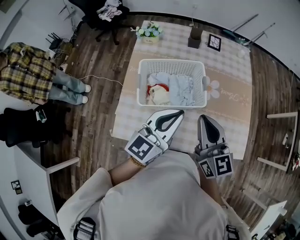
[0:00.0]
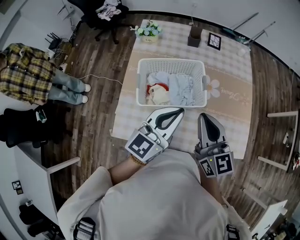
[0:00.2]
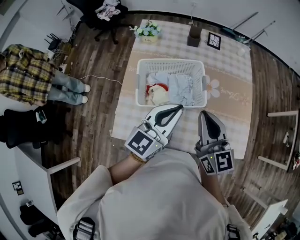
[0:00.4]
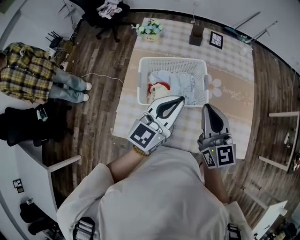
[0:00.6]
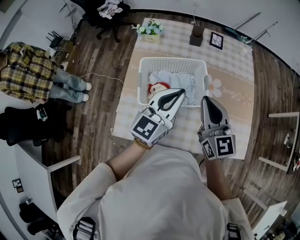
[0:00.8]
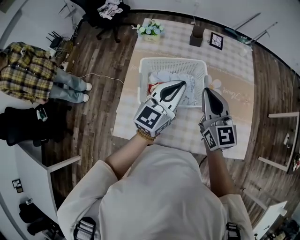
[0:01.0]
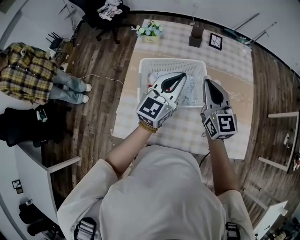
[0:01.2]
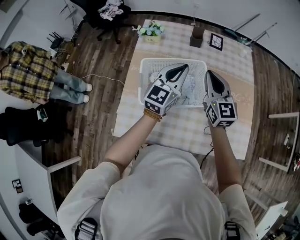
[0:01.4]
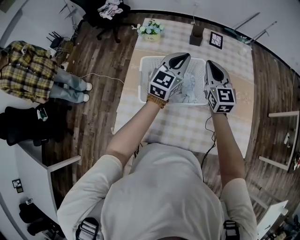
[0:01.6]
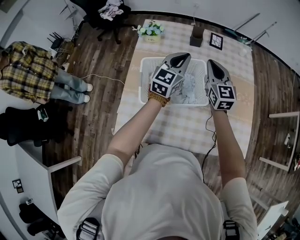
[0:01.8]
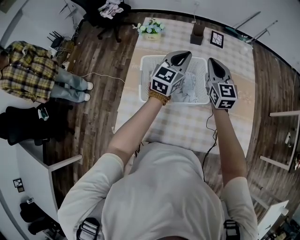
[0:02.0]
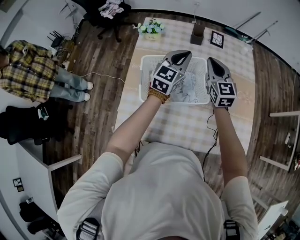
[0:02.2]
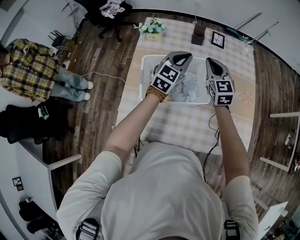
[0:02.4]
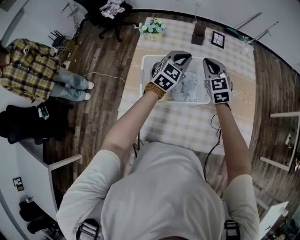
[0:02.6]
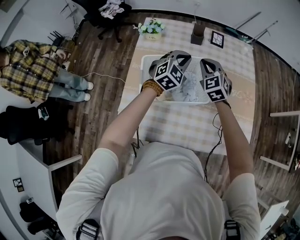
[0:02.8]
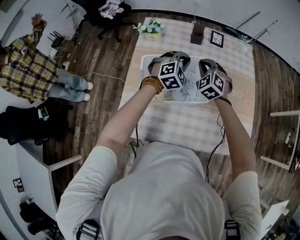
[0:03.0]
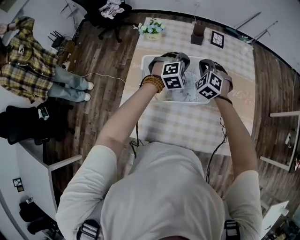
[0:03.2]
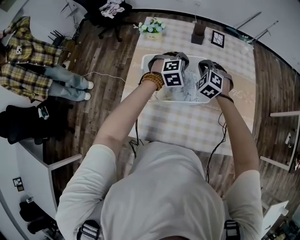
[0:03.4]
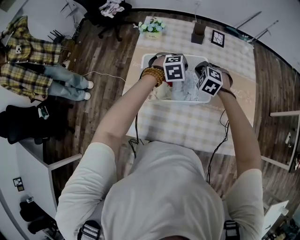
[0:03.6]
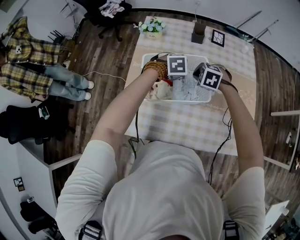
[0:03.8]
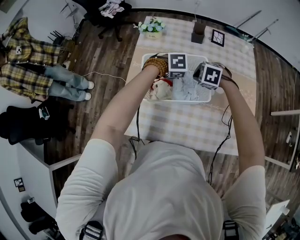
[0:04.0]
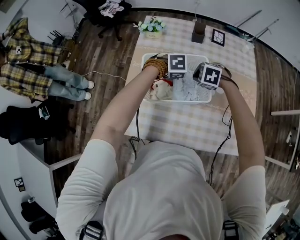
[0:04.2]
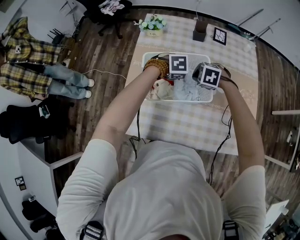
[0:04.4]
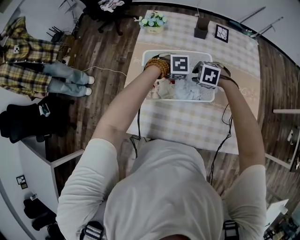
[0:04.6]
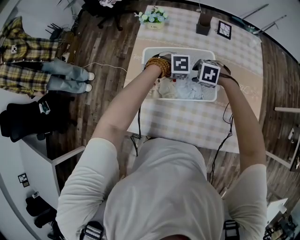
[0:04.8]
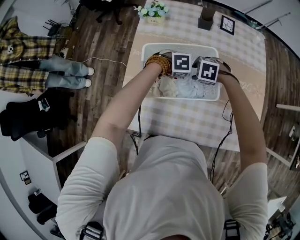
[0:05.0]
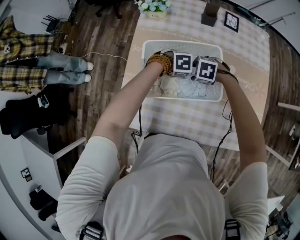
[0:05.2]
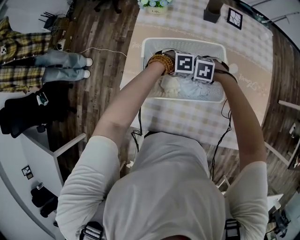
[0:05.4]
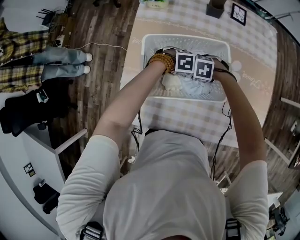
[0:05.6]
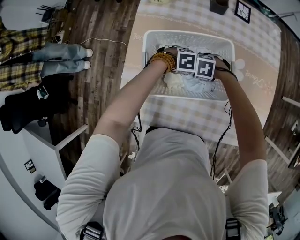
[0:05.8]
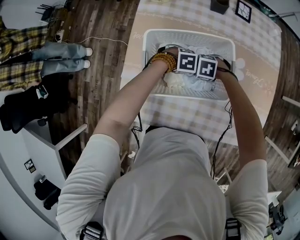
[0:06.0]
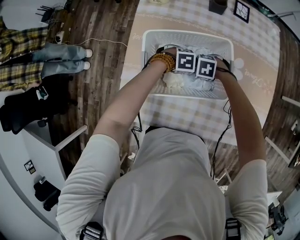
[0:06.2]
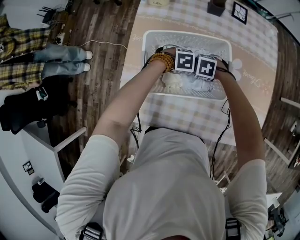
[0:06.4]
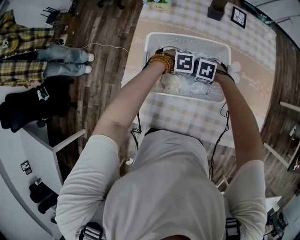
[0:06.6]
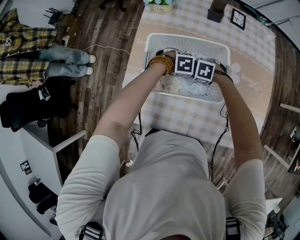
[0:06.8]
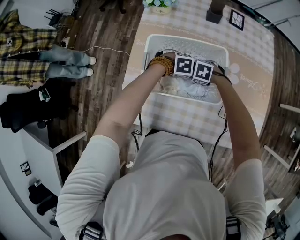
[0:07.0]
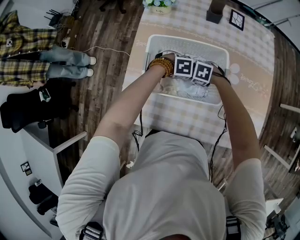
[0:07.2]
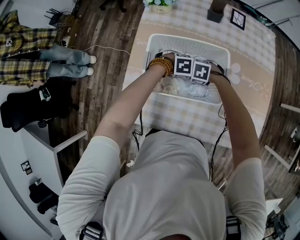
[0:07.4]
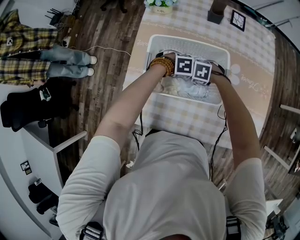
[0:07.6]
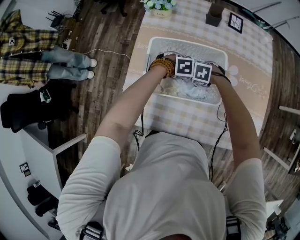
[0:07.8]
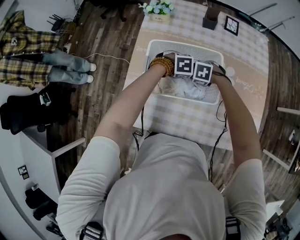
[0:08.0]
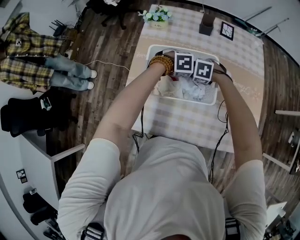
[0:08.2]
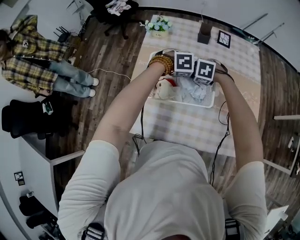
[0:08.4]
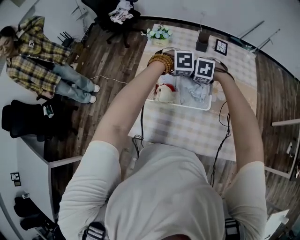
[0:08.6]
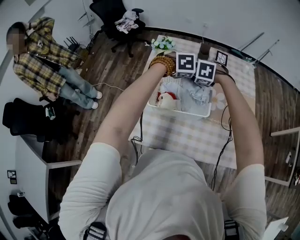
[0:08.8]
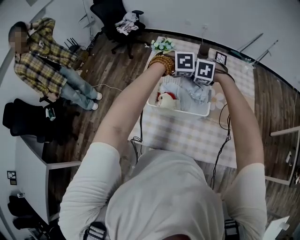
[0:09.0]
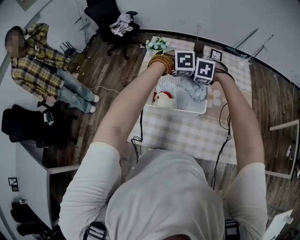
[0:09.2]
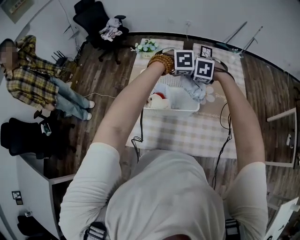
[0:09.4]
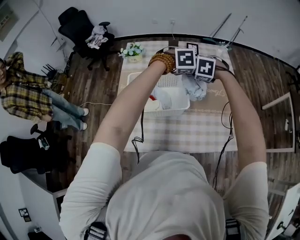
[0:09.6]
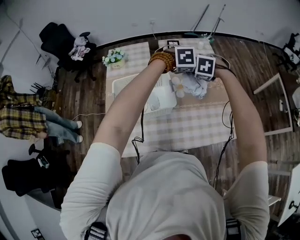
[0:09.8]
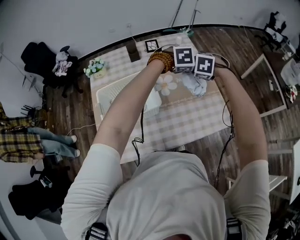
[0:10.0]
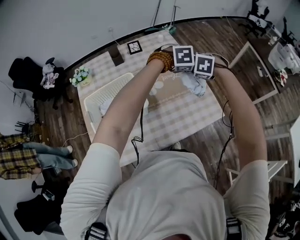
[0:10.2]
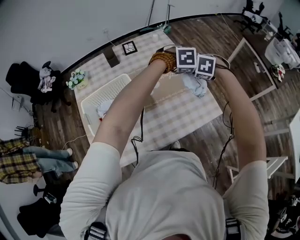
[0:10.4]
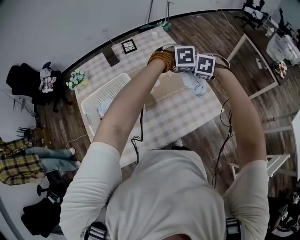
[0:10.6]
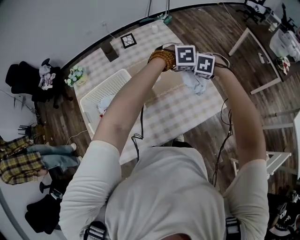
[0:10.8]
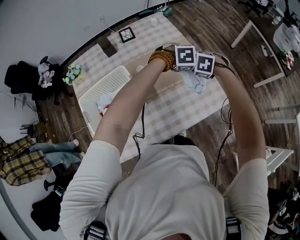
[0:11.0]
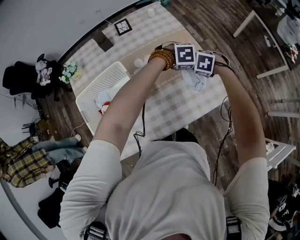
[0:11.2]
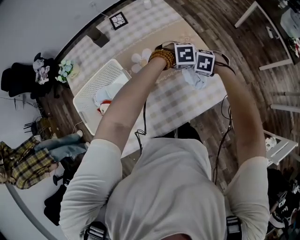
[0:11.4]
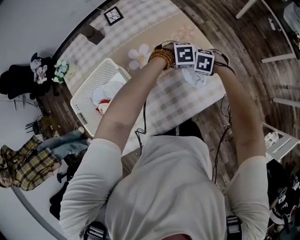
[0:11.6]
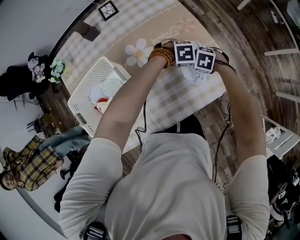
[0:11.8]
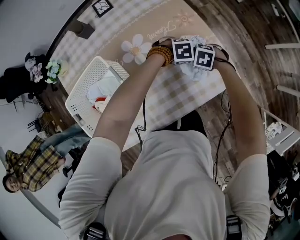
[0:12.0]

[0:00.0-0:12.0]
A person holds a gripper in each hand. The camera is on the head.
0:00.0 to 0:01.6: The two grippers go some 20 cm forward.
0:01.6 to 0:03.0: The grippers both shift downward by roughly 10 cm. The left gripper angles its fingers downward, by about 30 degrees. Meanwhile the right gripper twists approximately 40 degrees counterclockwise, seen from behind.
0:03.0 to 0:04.4: The grippers both shift downward by about 10 cm. The left gripper tilts its fingers some 40 degrees downward. Meanwhile the right gripper points its fingers roughly 40 degrees further downward.
0:04.4 to 0:06.0: Both grippers move downward, some 15 cm. The left gripper opens its fingers. The right gripper opens up.
0:06.0 to 0:07.6: The grippers stay close to where they were, moving slightly.
0:07.6 to 0:09.0: The two grippers go some 25 cm upward. The right gripper swivels some 20 degrees; the left gripper swivels roughly 20 degrees.
0:09.0 to 0:10.4: The right gripper changes place by about 35 cm, and changes its angle by some 40 degrees; the left gripper changes place by about 40 cm, and turns by some 40 degrees.
0:10.4 to 0:12.0: Both grippers move downward, approximately 30 cm. The left gripper changes its angle by about 20 degrees. The right gripper swivels about 20 degrees.

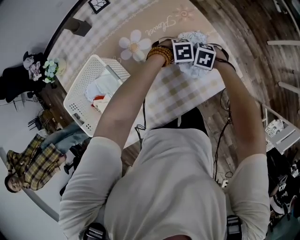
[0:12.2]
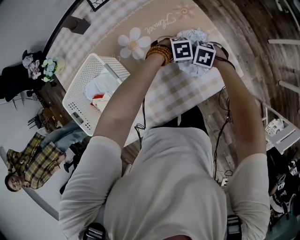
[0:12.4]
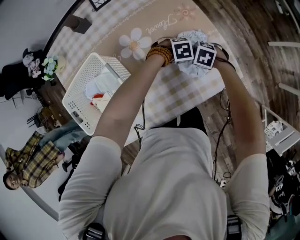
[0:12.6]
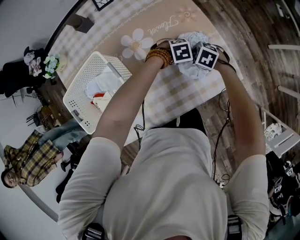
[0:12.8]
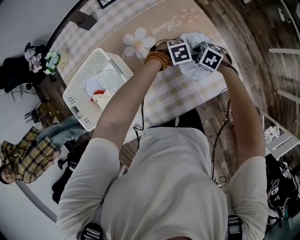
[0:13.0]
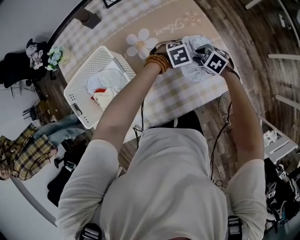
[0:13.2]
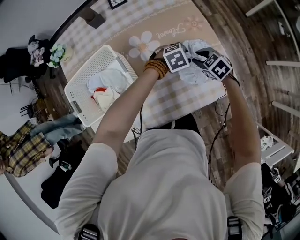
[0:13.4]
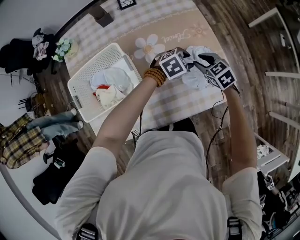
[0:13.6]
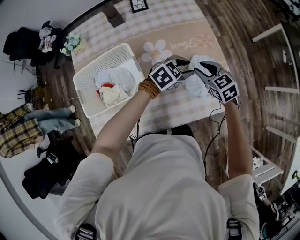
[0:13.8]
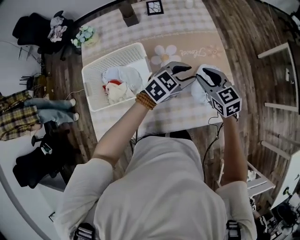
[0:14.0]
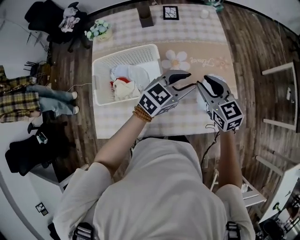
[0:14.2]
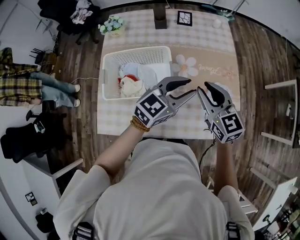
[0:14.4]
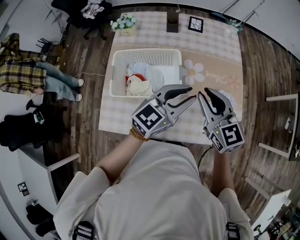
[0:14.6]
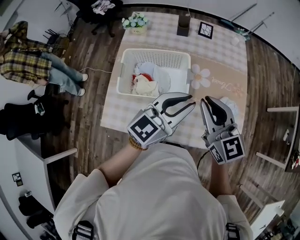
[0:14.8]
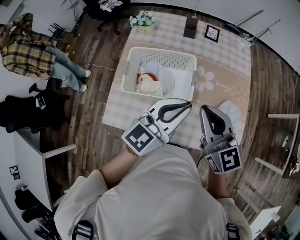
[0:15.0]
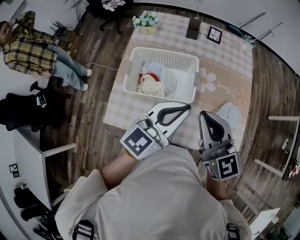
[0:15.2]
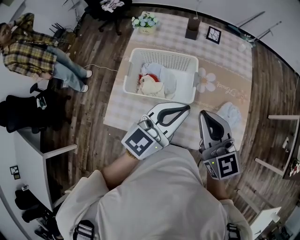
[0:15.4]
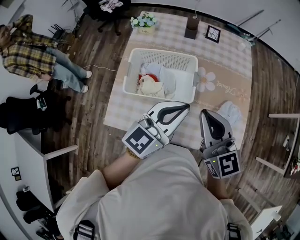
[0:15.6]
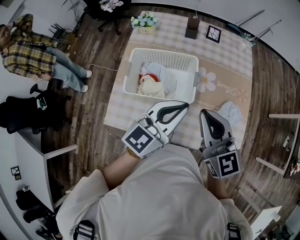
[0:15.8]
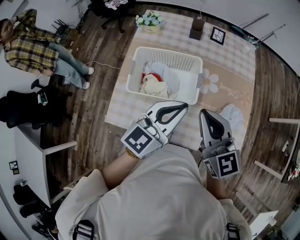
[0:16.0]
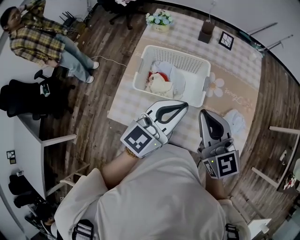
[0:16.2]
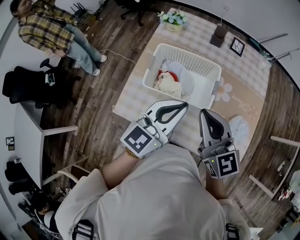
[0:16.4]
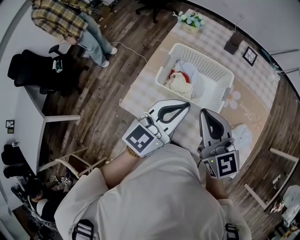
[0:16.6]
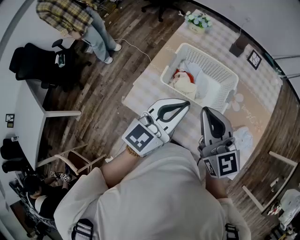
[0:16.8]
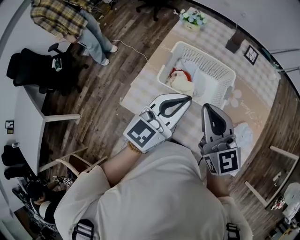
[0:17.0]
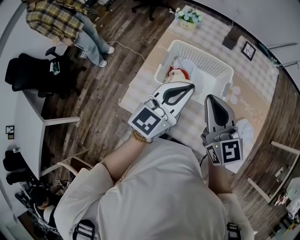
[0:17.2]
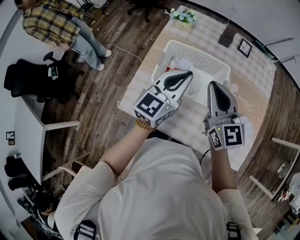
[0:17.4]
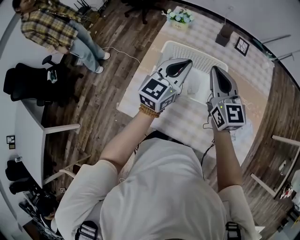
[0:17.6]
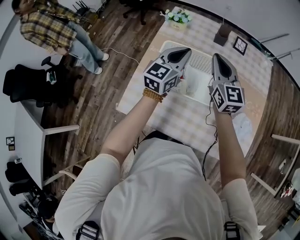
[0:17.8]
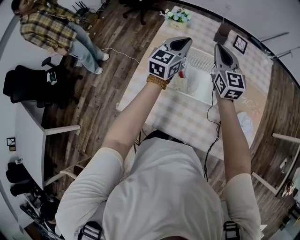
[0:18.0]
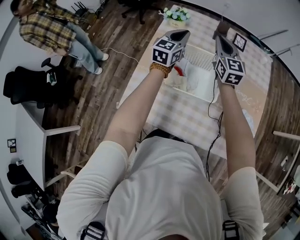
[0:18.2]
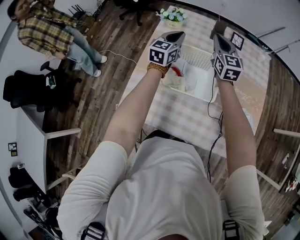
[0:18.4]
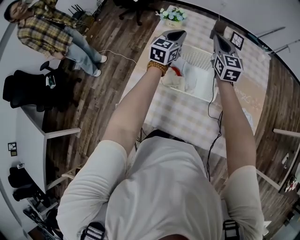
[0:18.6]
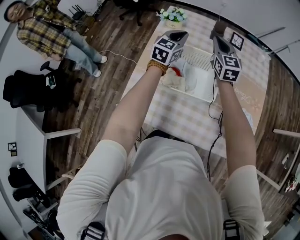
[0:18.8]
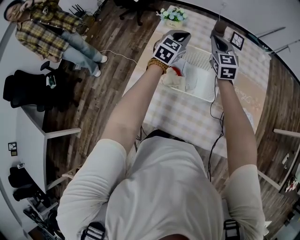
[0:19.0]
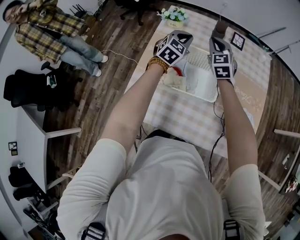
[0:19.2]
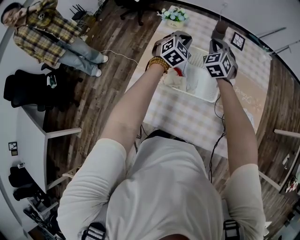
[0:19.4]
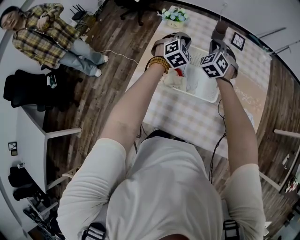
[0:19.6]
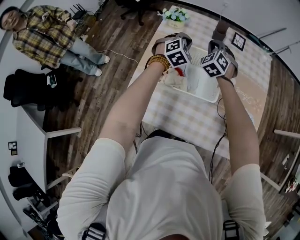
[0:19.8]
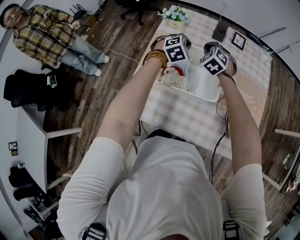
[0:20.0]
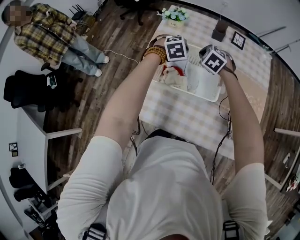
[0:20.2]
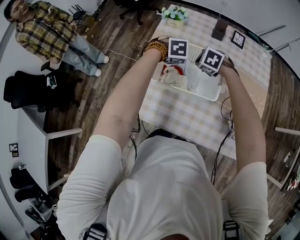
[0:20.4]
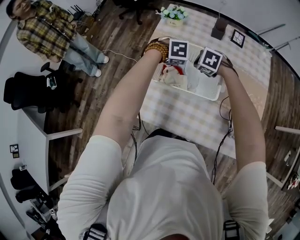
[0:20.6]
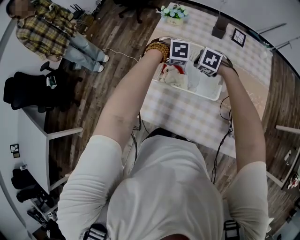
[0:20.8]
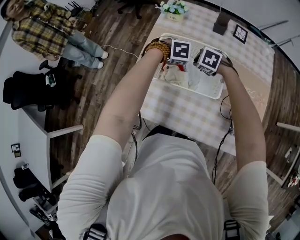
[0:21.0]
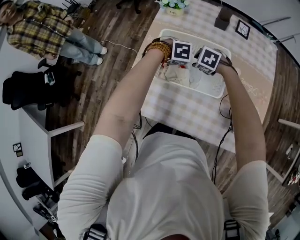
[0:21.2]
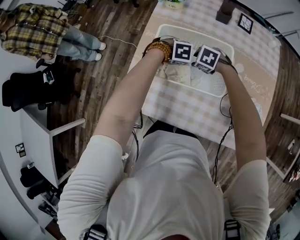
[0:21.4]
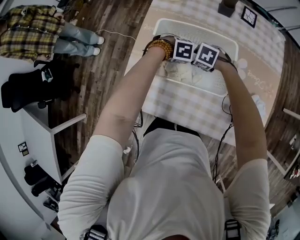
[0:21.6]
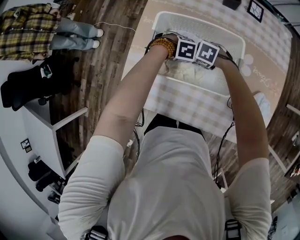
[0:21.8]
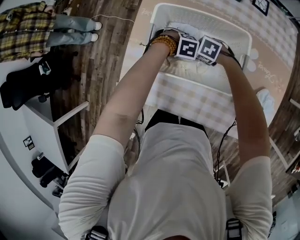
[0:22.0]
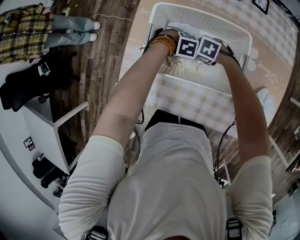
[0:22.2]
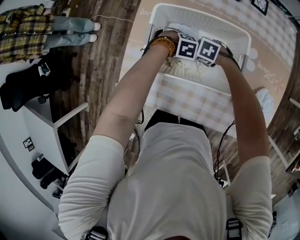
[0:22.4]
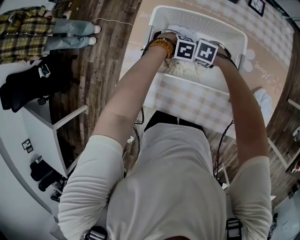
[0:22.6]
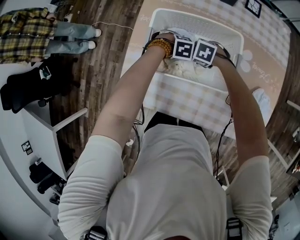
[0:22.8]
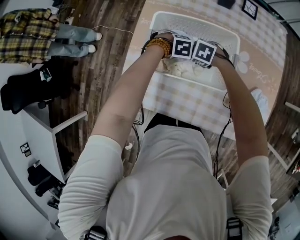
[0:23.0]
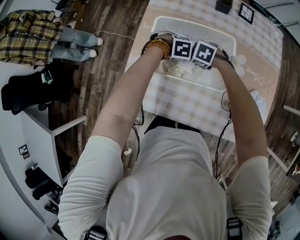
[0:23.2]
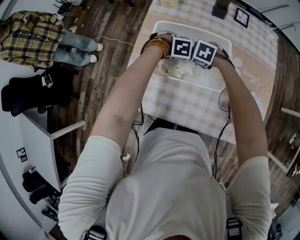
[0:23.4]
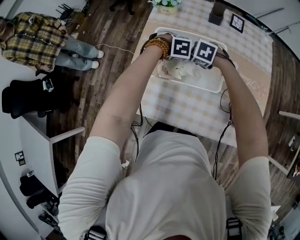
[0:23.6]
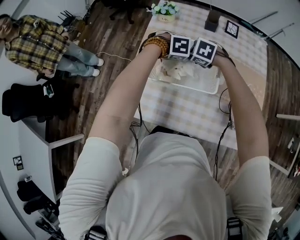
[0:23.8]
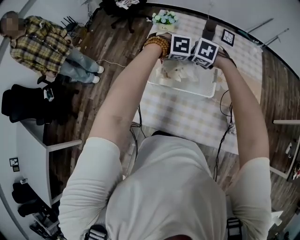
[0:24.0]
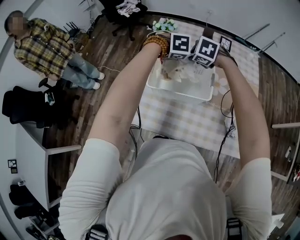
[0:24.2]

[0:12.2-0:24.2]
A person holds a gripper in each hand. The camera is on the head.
0:12.2 to 0:13.8: The two grippers go roughly 20 cm upward. The right gripper angles its fingers upward, by about 30 degrees, and opens up, while the left gripper tips its fingers upward by some 30 degrees.
0:13.8 to 0:15.2: The right gripper shifts by roughly 40 cm, tilts its fingers approximately 30 degrees upward, and closes up, while the left gripper moves roughly 40 cm, tilts its fingers roughly 40 degrees upward, and closes its fingers.
0:15.2 to 0:16.6: The two grippers go some 10 cm to the left.
0:16.6 to 0:18.2: The two grippers go about 25 cm forward. The right gripper turns by some 20 degrees.
0:18.2 to 0:19.8: The two grippers go roughly 10 cm downward. The left gripper rotates around the line of its fingers by approximately 50 degrees, clockwise from behind, while the right gripper twists some 40 degrees counterclockwise, seen from behind.
0:19.8 to 0:21.2: Both grippers travel together downward, roughly 15 cm. The left gripper angles its fingers downward, by some 40 degrees, and opens its fingers. Meanwhile the right gripper tilts its fingers about 40 degrees downward, and opens.
0:21.2 to 0:22.6: The two grippers go some 15 cm downward. The right gripper opens, then closes once more.
0:22.6 to 0:24.2: Both grippers travel together upward, some 30 cm. The right gripper swivels roughly 20 degrees.
